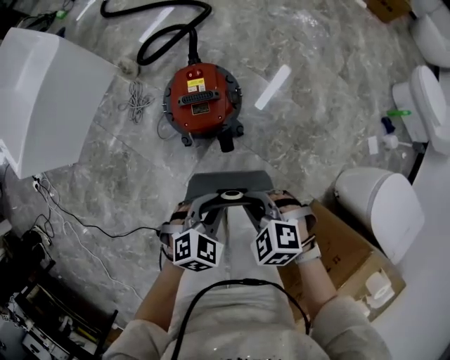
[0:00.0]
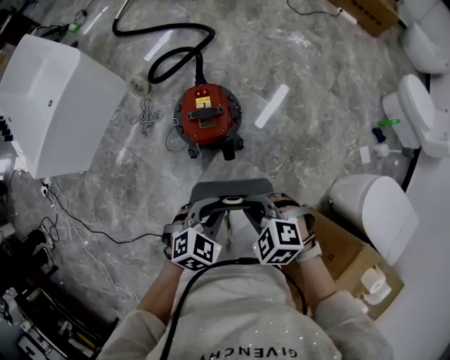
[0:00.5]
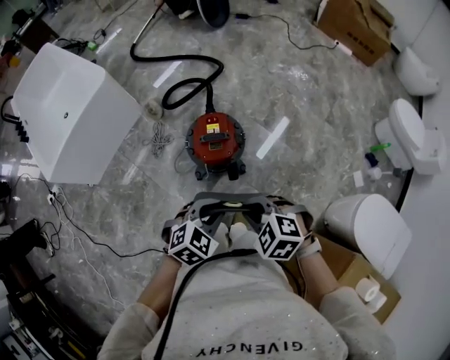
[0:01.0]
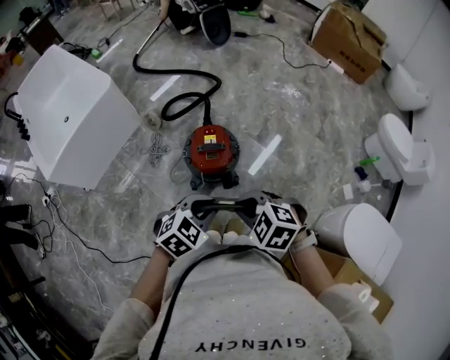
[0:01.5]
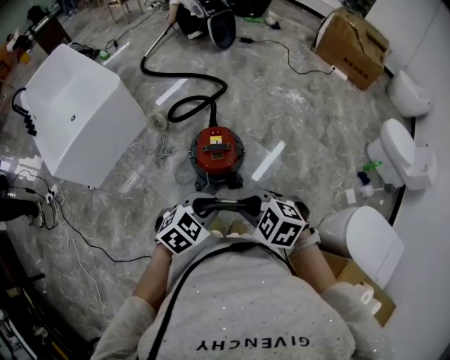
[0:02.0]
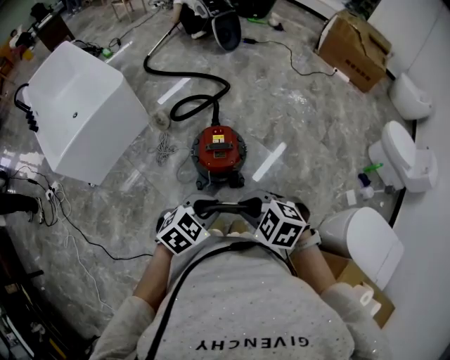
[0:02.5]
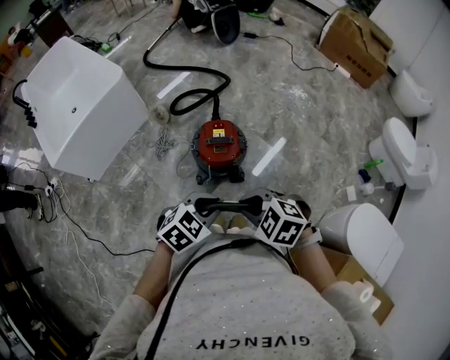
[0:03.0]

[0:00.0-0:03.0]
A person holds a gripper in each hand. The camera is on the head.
0:00.0 to 0:01.5: The two grippers go roughly 20 cm upward.
0:01.5 to 0:03.0: There are only small adjustments of the grippers.

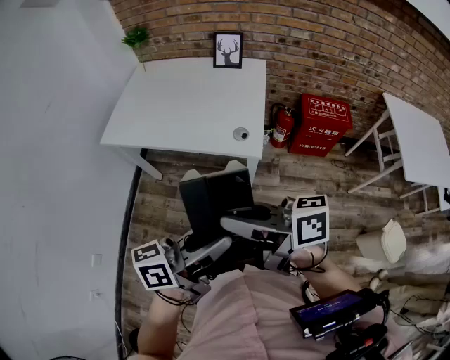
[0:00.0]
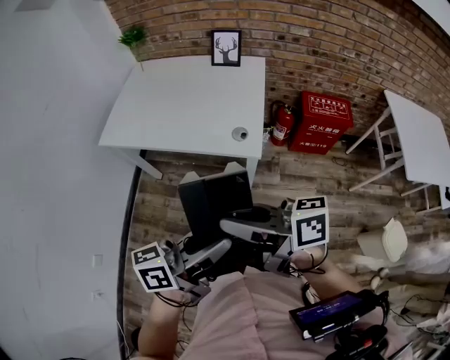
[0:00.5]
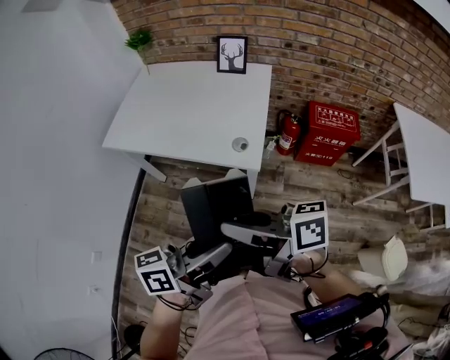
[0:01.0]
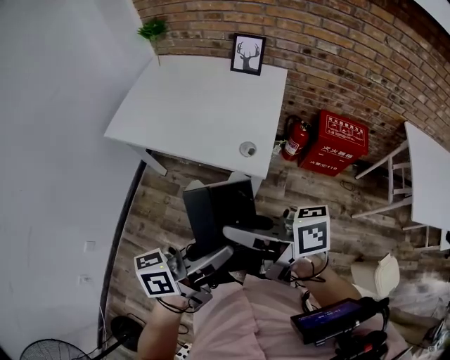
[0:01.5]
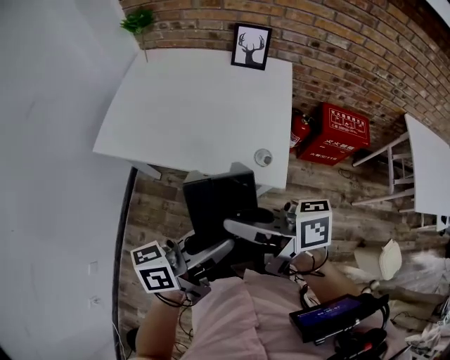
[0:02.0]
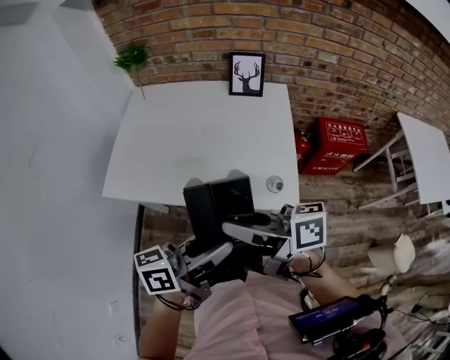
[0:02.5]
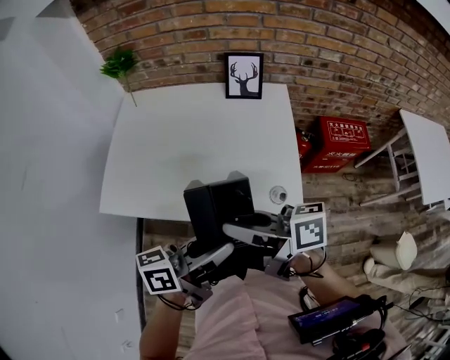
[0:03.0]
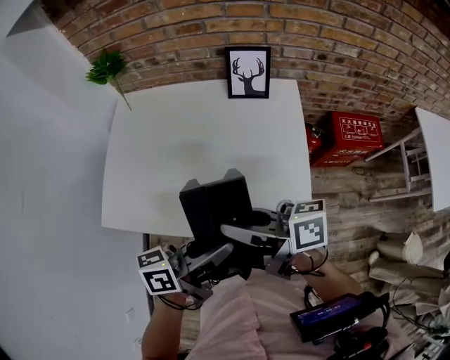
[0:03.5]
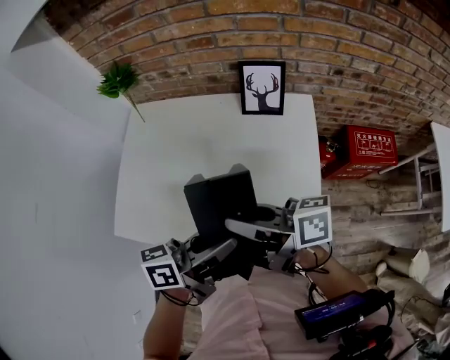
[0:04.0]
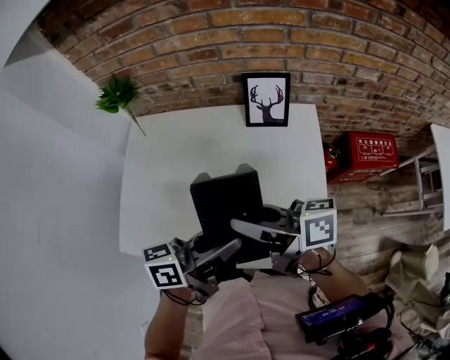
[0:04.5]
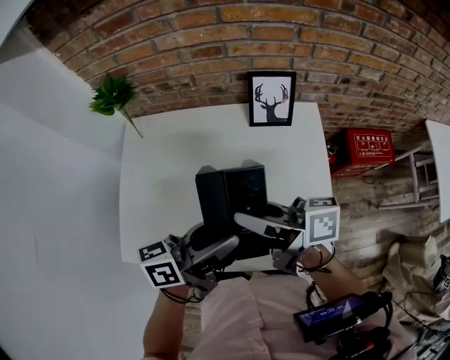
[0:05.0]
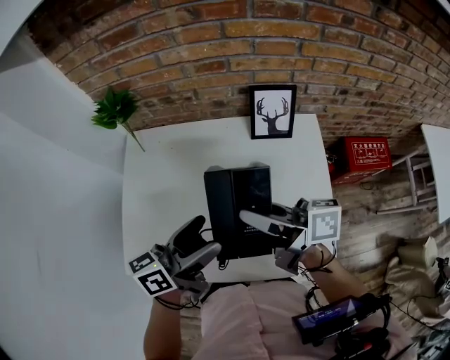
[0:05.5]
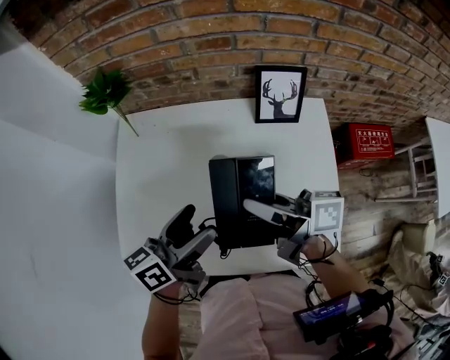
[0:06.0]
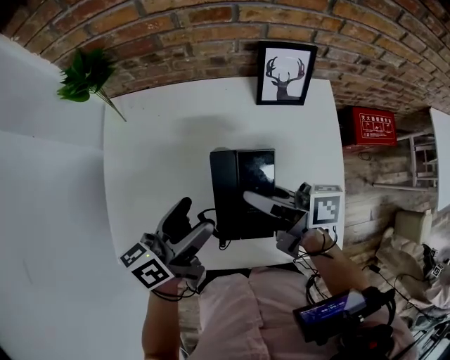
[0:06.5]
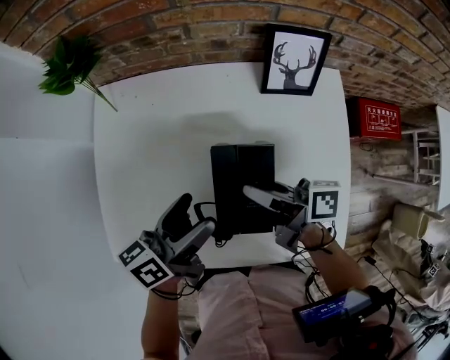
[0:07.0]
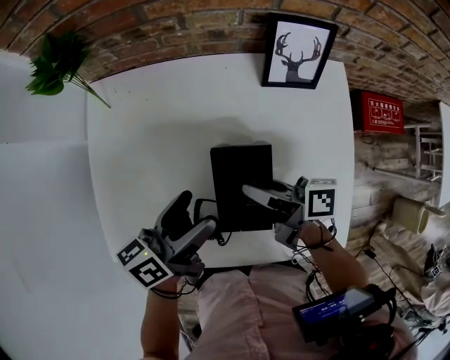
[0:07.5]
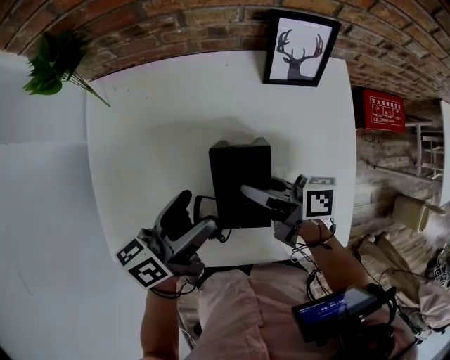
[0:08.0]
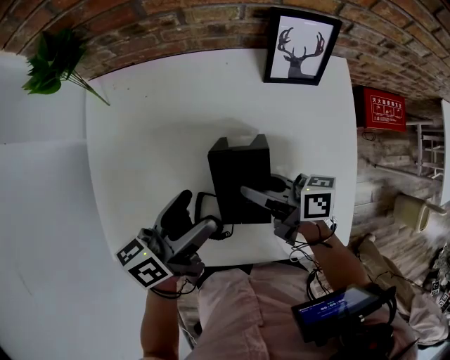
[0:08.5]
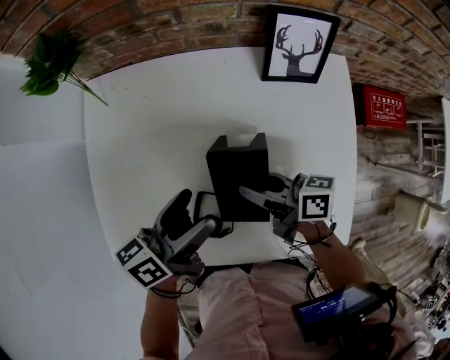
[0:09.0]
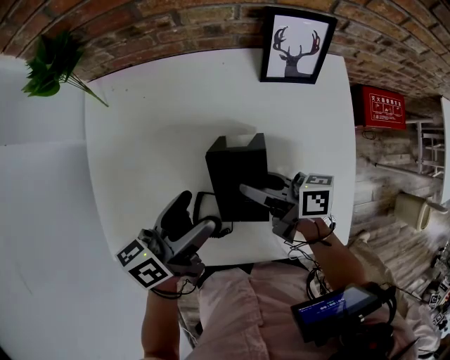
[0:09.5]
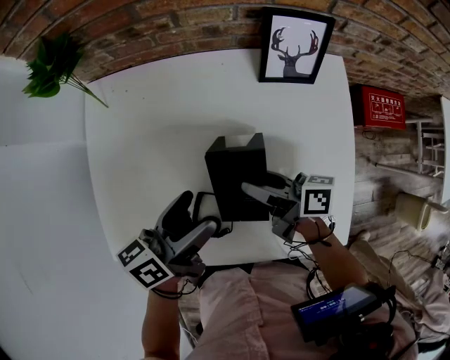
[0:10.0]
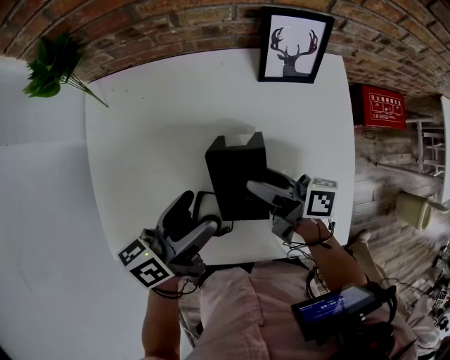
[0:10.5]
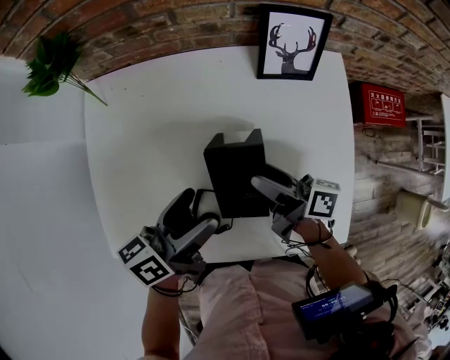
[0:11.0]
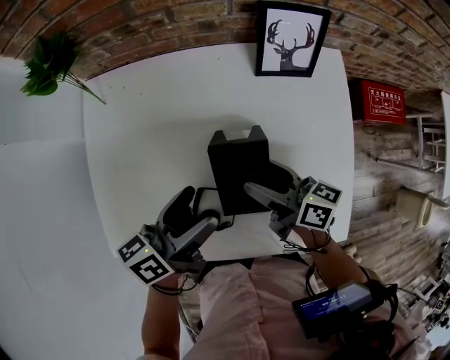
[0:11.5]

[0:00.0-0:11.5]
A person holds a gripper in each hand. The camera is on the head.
0:00.0 to 0:02.0: Both grippers move forward, approximately 15 cm.
0:02.0 to 0:04.0: The grippers both shift forward by roughly 30 cm.
0:04.0 to 0:06.0: The left gripper is displaced forward and to the left by approximately 20 cm, and opens, while the right gripper is displaced forward by some 15 cm.
0:06.0 to 0:07.5: The right gripper travels downward by some 15 cm. The left gripper heads downward, covering some 10 cm.
0:07.5 to 0:09.5: There are only small adjustments of the grippers.
0:09.5 to 0:11.5: The right gripper opens.

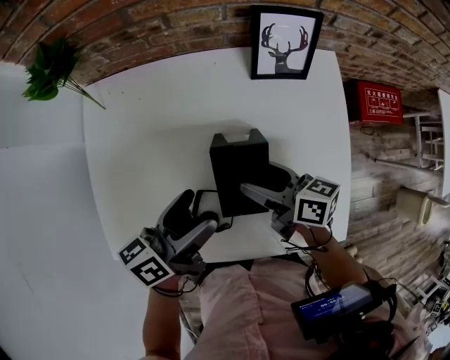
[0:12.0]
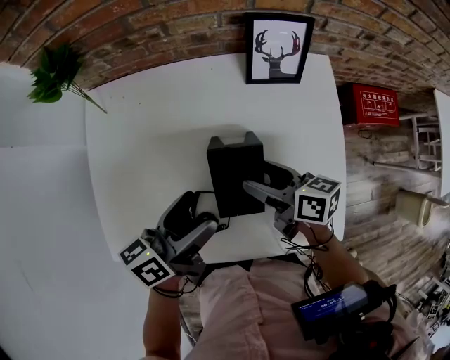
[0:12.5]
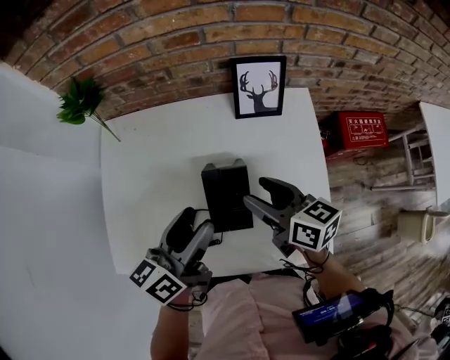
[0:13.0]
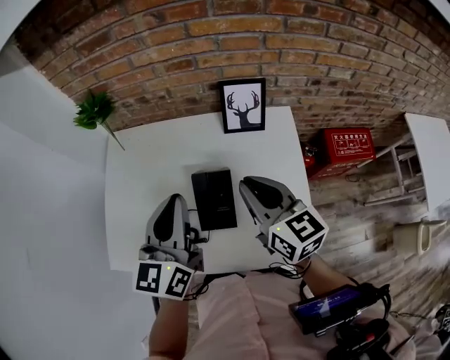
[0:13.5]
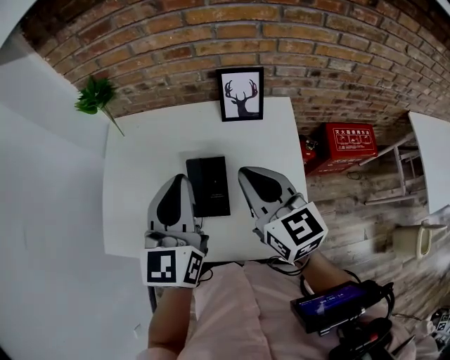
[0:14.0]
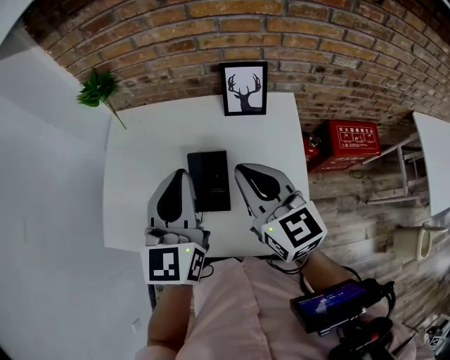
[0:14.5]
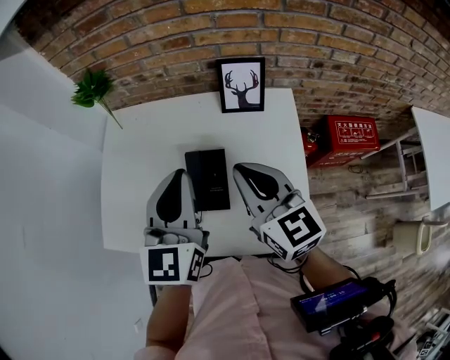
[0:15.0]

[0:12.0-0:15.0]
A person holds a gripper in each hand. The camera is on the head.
0:12.0 to 0:13.5: Both grippers move upward, approximately 20 cm. The right gripper changes its angle by roughly 40 degrees, and closes its fingers, while the left gripper changes its angle by about 50 degrees, and closes its fingers.
0:13.5 to 0:15.0: The grippers make only small movements.

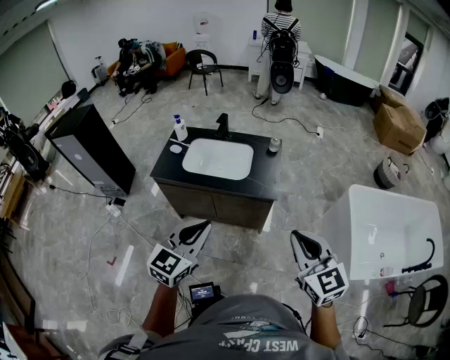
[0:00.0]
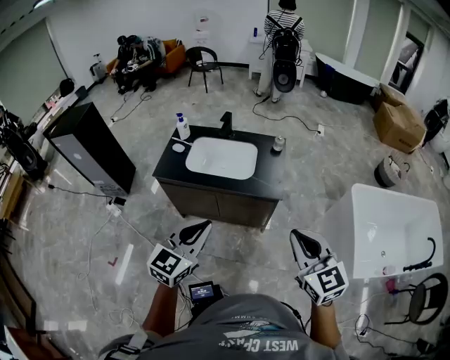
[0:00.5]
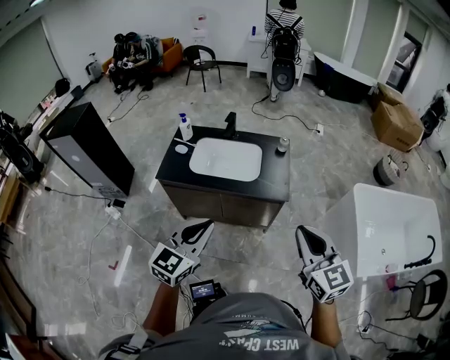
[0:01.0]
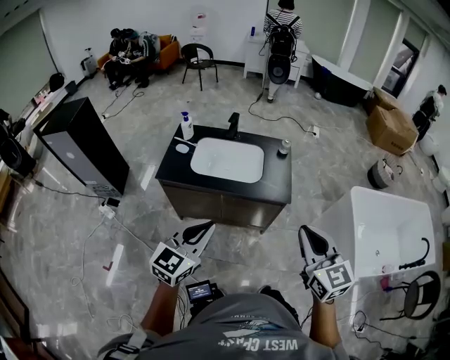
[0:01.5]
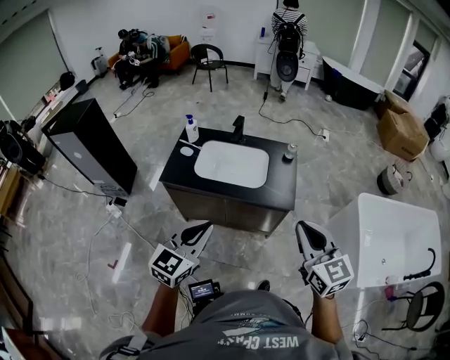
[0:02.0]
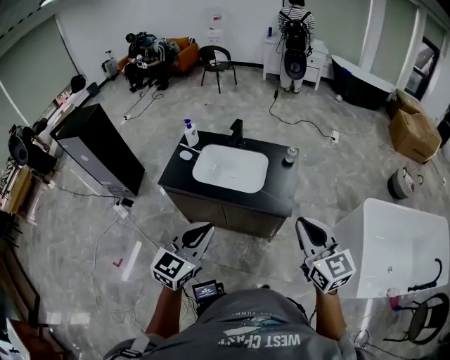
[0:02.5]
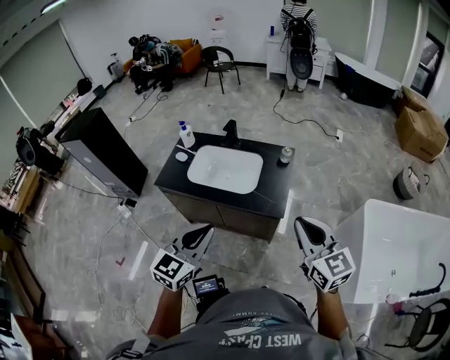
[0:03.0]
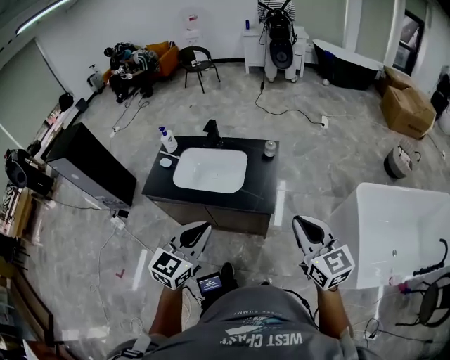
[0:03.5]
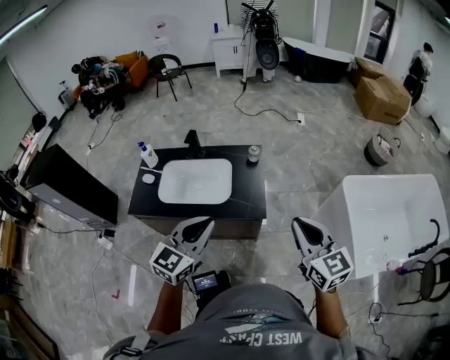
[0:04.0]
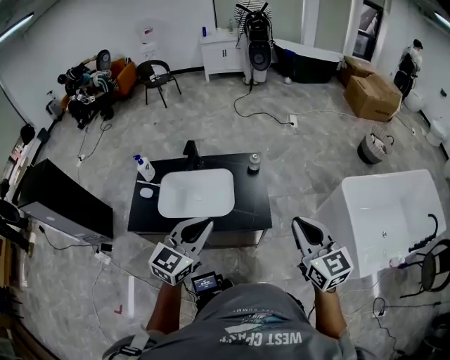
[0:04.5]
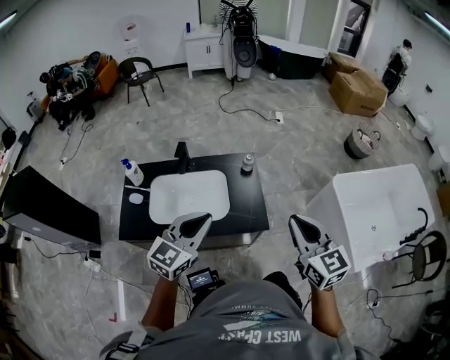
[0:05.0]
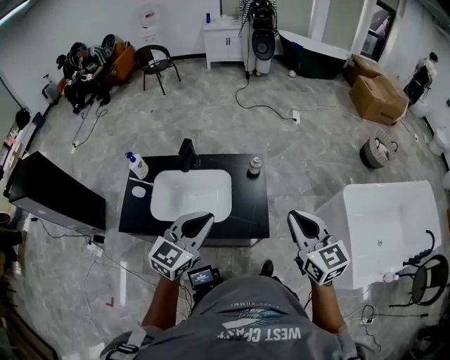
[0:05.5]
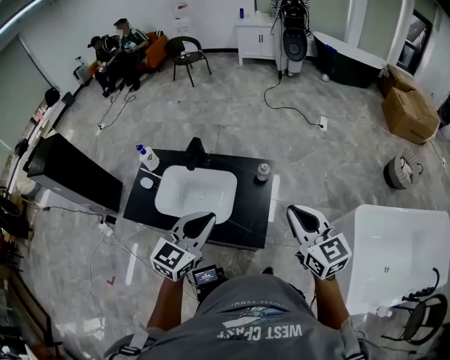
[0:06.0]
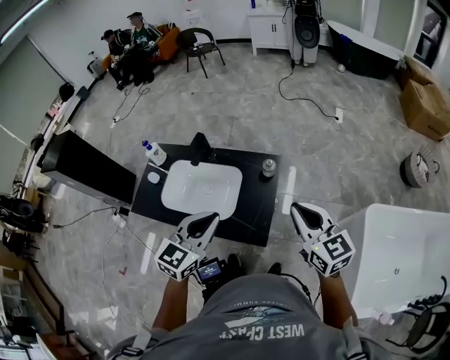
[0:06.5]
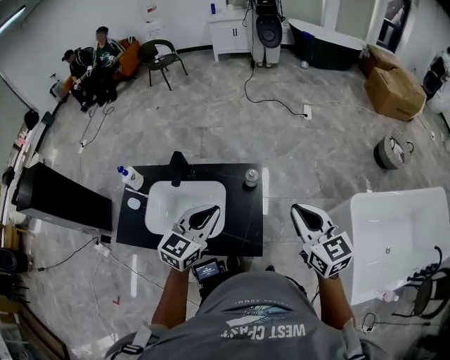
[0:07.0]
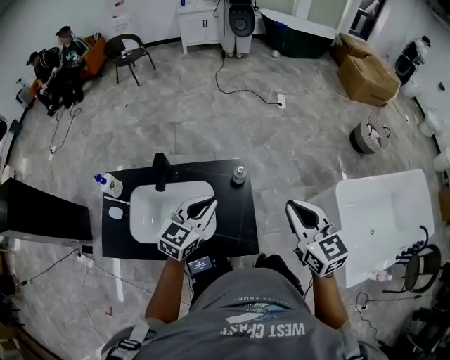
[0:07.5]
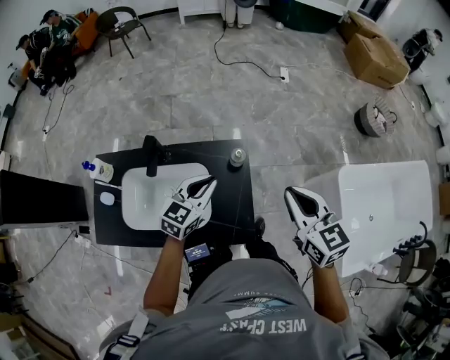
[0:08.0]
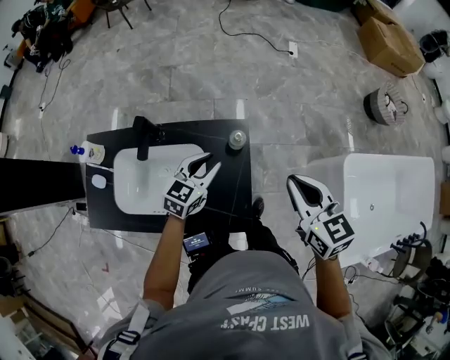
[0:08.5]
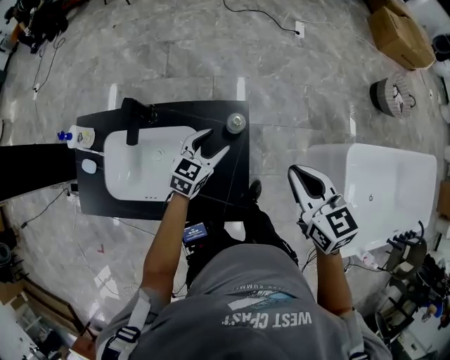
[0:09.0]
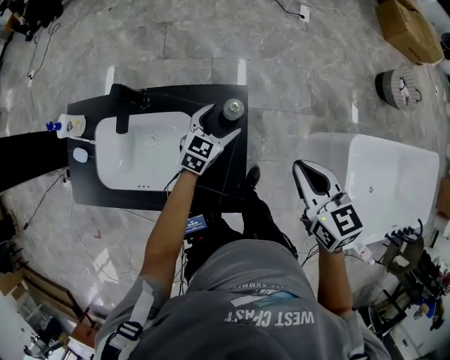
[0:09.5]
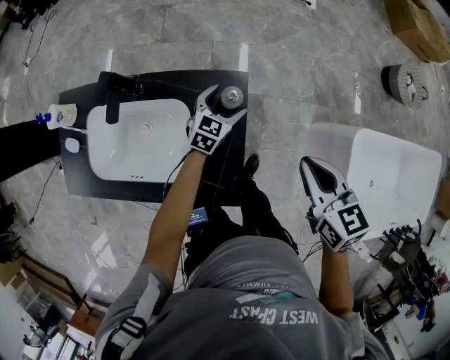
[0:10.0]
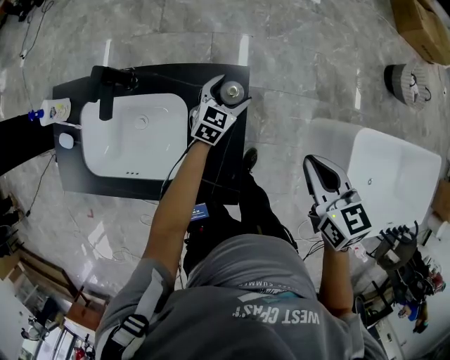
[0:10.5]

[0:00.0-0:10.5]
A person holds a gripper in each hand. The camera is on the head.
0:00.0 to 0:02.0: The right gripper goes about 10 cm forward and to the left. The left gripper travels to the left by some 10 cm.
0:02.0 to 0:04.0: Both grippers travel together to the right and forward, approximately 15 cm.
0:04.0 to 0:06.5: Both grippers travel together forward, some 20 cm.
0:06.5 to 0:08.5: The right gripper heads forward and downward, covering roughly 10 cm, and turns by some 20 degrees, while the left gripper heads forward and downward, covering approximately 25 cm.
0:08.5 to 0:10.5: The left gripper heads downward, forward and to the right, covering approximately 20 cm, and opens up; the right gripper travels downward and to the right by approximately 10 cm.
